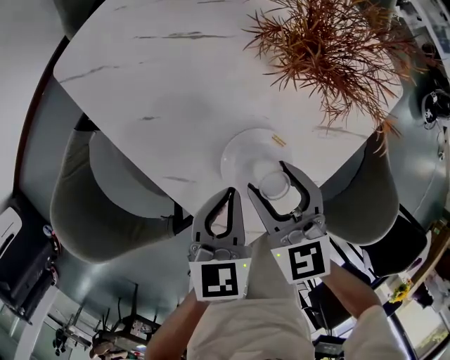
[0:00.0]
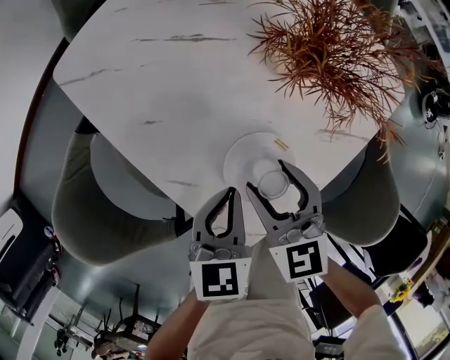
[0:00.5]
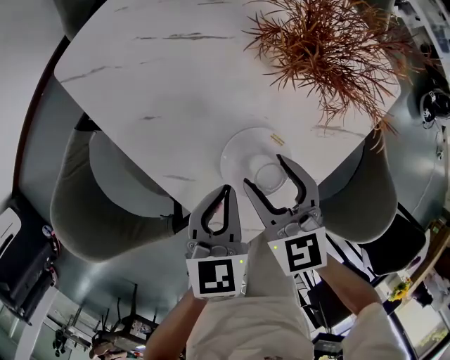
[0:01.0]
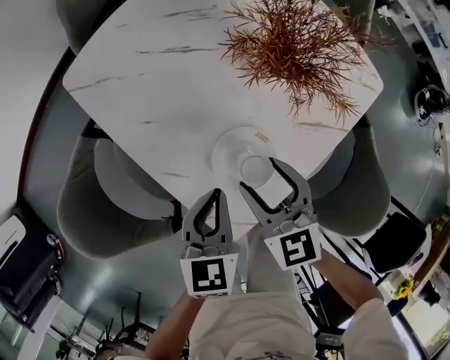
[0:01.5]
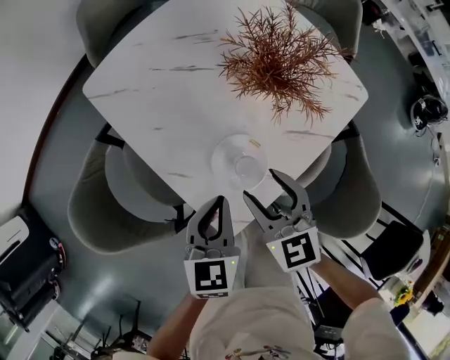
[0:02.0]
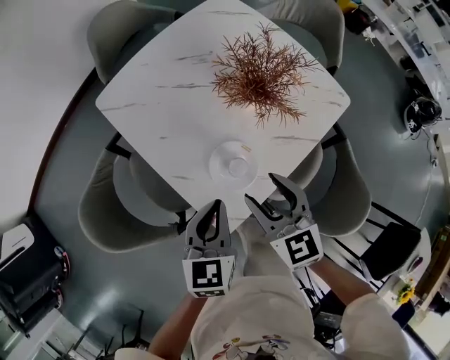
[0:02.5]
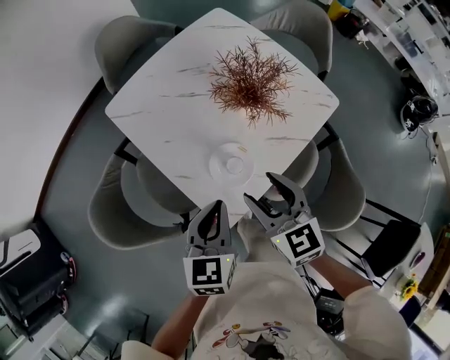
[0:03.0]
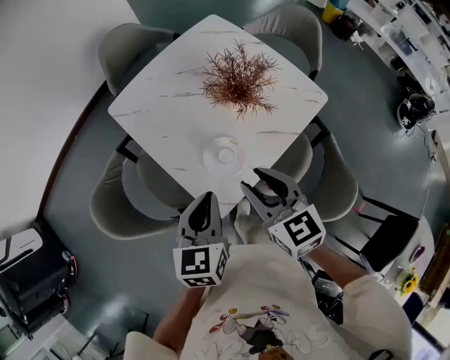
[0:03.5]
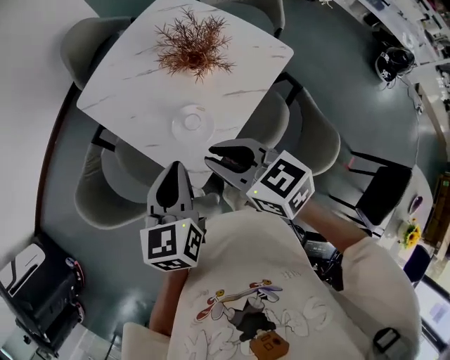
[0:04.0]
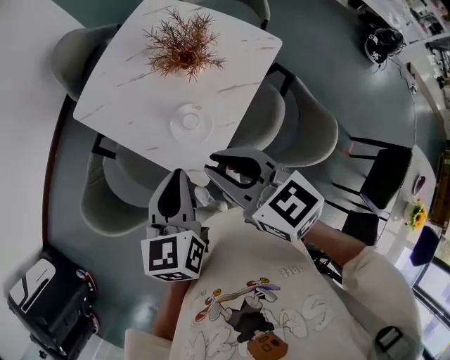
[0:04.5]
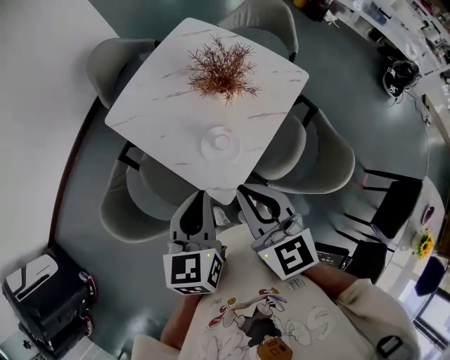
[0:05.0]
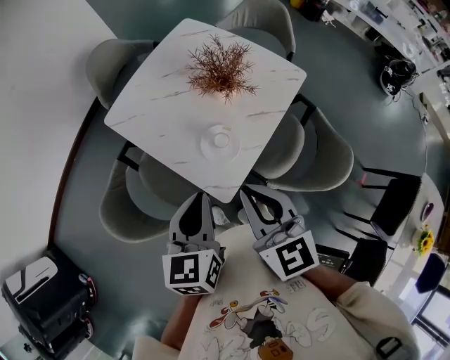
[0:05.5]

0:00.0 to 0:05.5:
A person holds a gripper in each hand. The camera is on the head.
0:00.0 to 0:02.0: Both grippers travel together upward, about 5 cm.
0:02.0 to 0:03.5: Both grippers travel together upward, approximately 15 cm. The right gripper closes.
0:03.5 to 0:05.5: The right gripper shifts roughly 10 cm upward and backward, and closes, while the left gripper heads upward, covering about 5 cm.

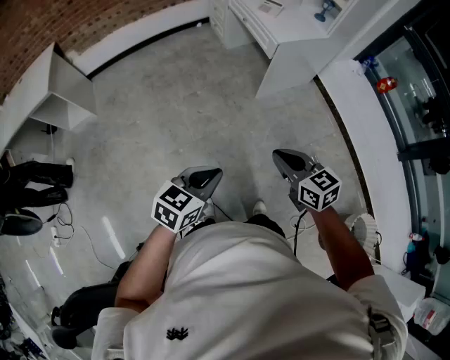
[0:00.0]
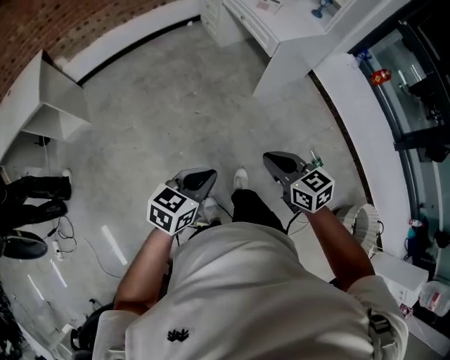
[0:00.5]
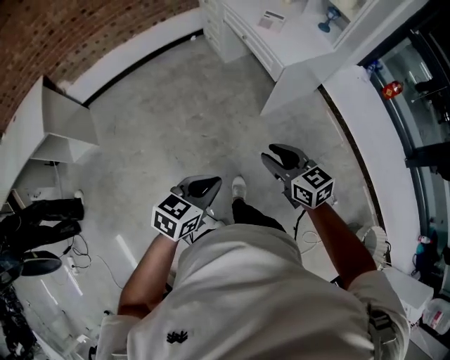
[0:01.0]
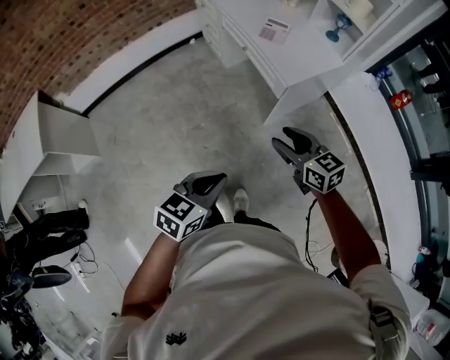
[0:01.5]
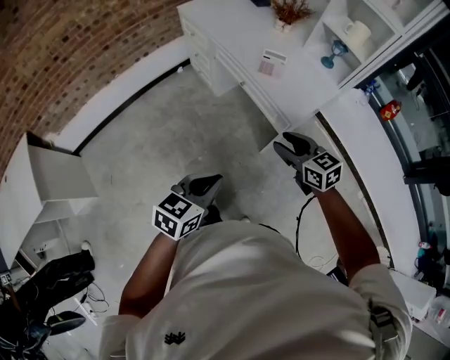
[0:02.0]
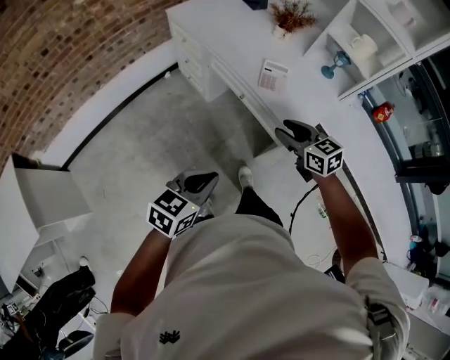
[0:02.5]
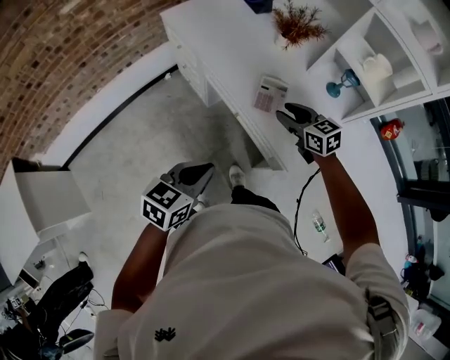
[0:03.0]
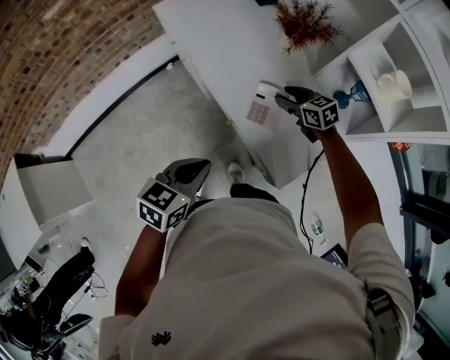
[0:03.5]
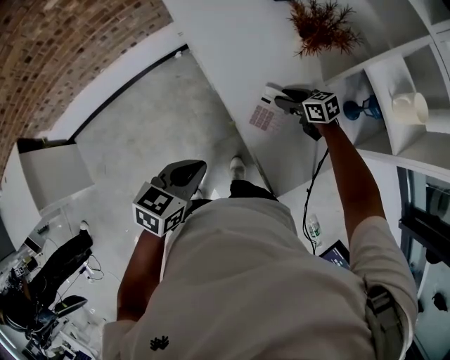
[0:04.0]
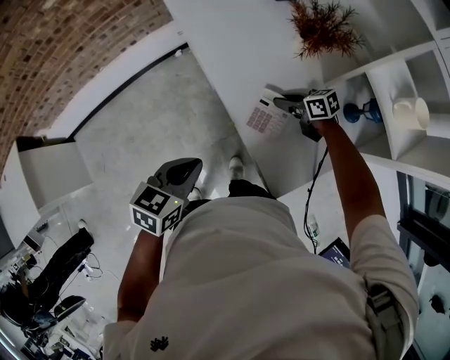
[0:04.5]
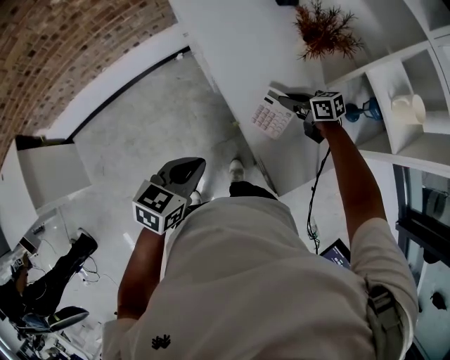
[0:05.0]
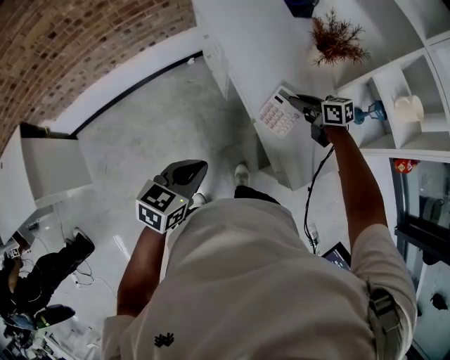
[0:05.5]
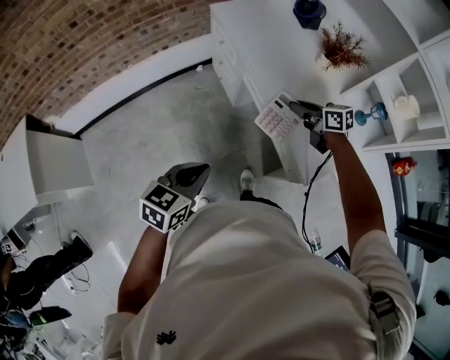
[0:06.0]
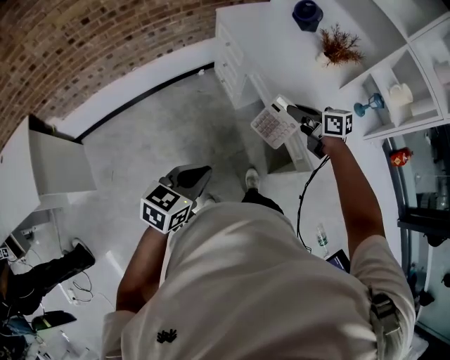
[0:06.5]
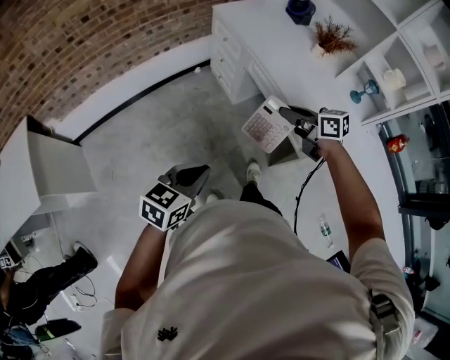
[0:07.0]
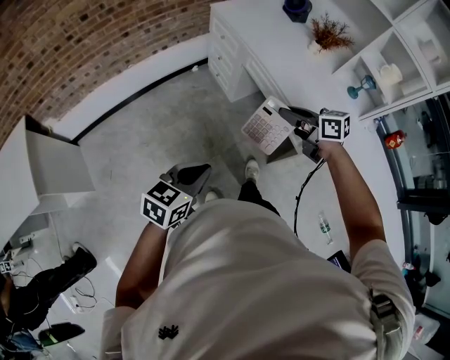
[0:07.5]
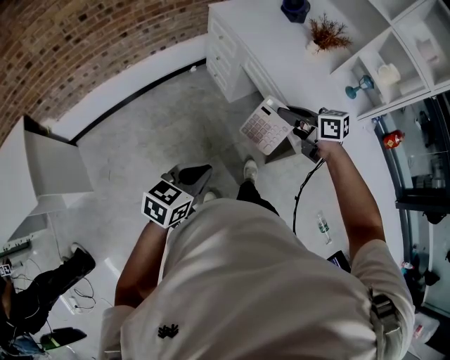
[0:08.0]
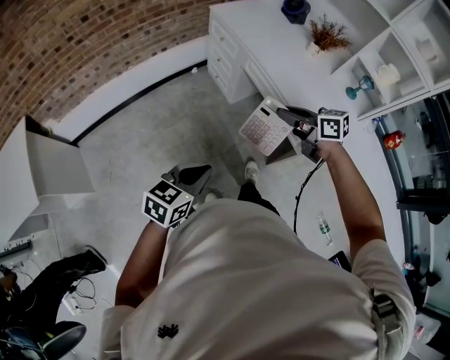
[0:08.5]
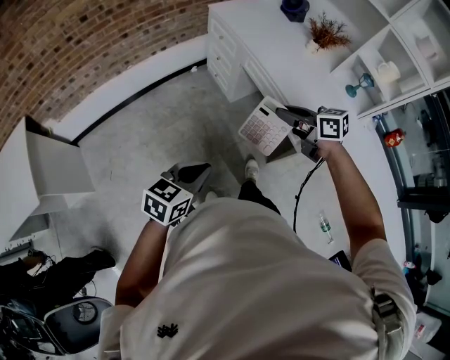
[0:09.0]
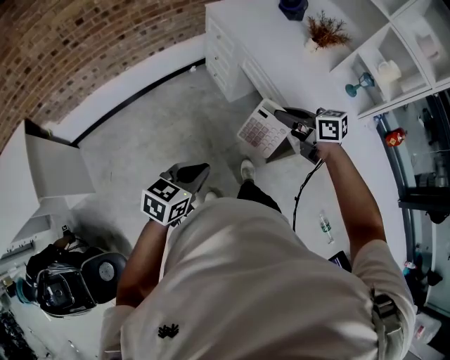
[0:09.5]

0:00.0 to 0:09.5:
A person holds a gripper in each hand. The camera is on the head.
0:00.0 to 0:02.0: The two grippers travel together, forward, roughly 50 cm. The right gripper opens up.
0:02.0 to 0:04.0: The right gripper moves forward and downward, about 50 cm, and changes its angle by roughly 30 degrees, while the left gripper shifts about 35 cm forward.
0:04.0 to 0:05.5: The left gripper heads to the left, covering some 10 cm. Meanwhile the right gripper moves upward and to the left, about 10 cm, and closes its fingers.
0:05.5 to 0:07.5: The right gripper goes some 35 cm backward, to the left and upward; the left gripper is displaced to the left and backward by about 25 cm.
0:07.5 to 0:09.5: The grippers make only small movements.

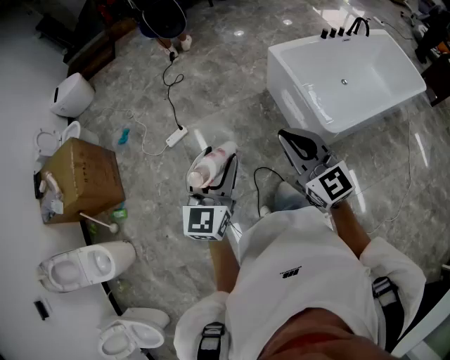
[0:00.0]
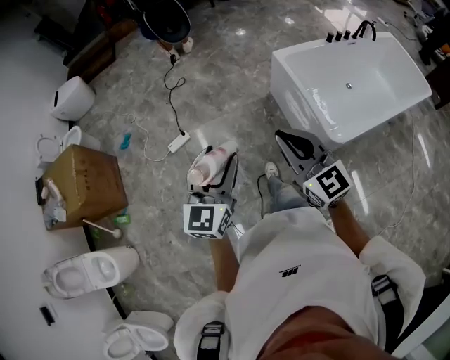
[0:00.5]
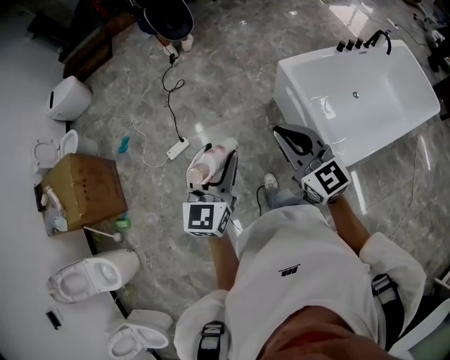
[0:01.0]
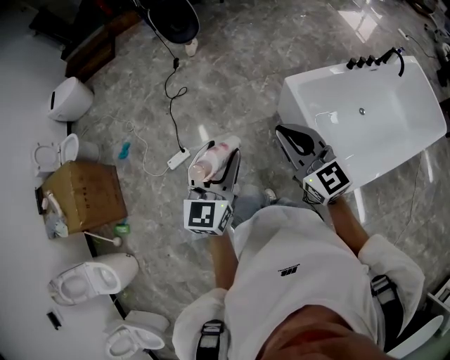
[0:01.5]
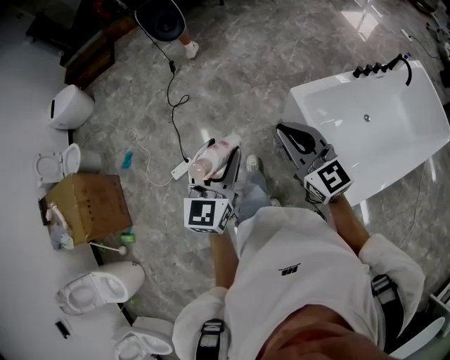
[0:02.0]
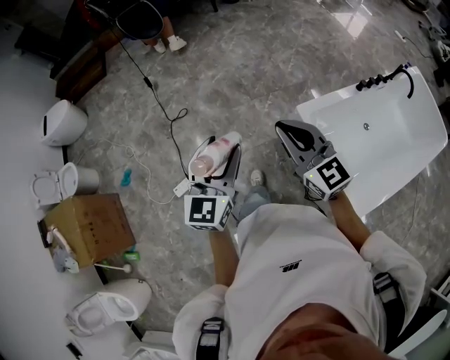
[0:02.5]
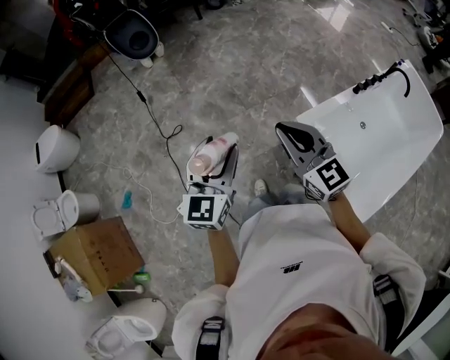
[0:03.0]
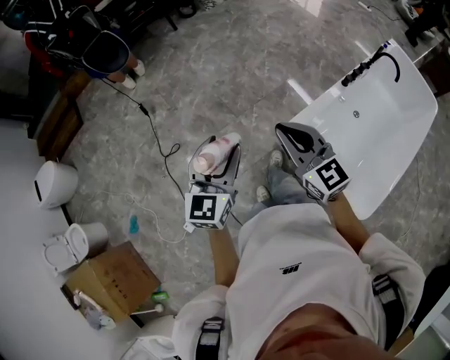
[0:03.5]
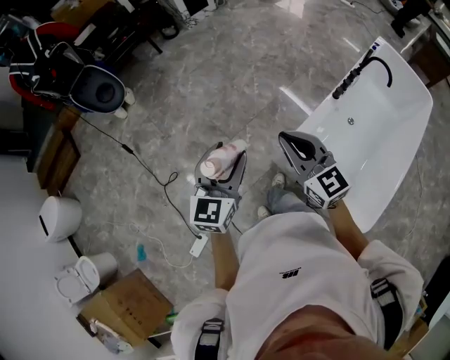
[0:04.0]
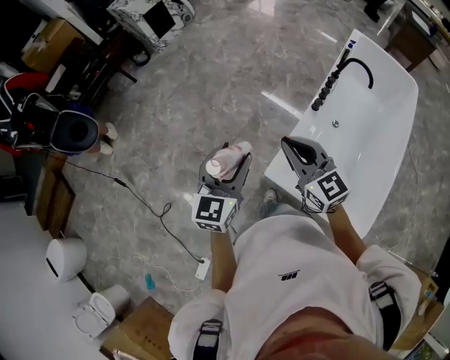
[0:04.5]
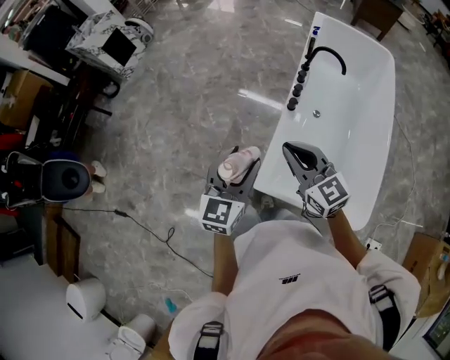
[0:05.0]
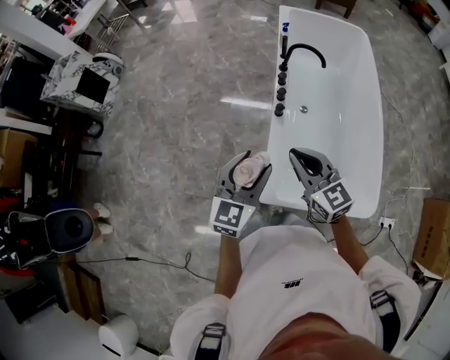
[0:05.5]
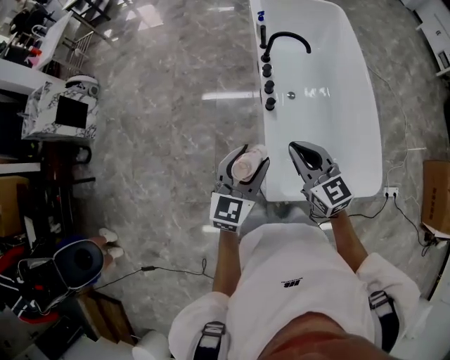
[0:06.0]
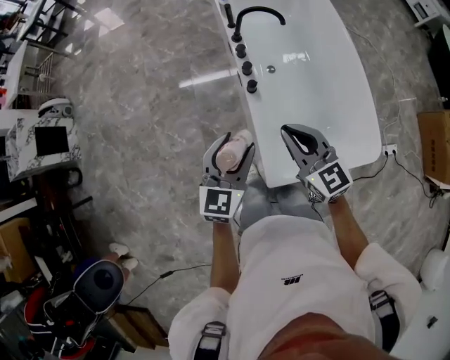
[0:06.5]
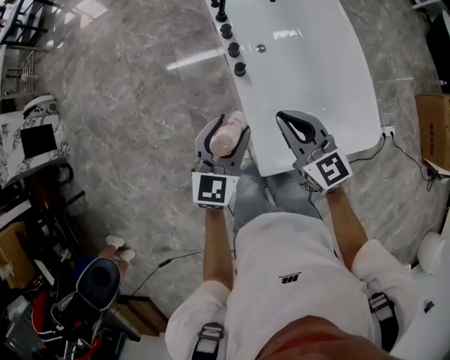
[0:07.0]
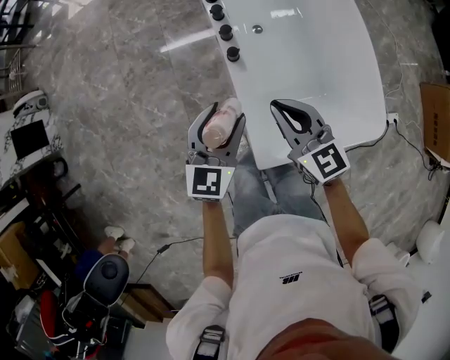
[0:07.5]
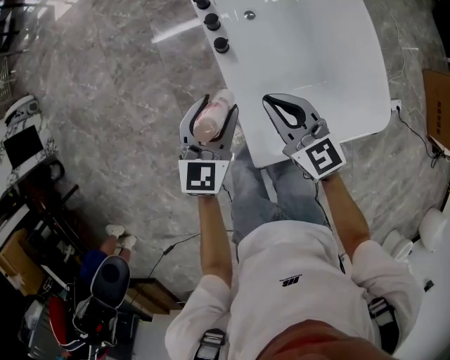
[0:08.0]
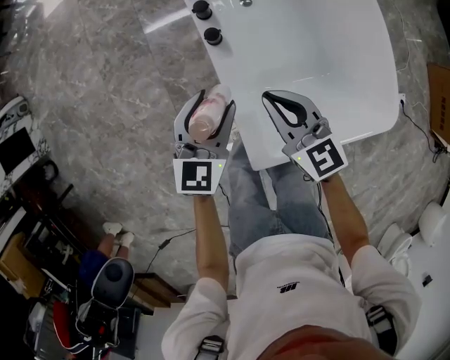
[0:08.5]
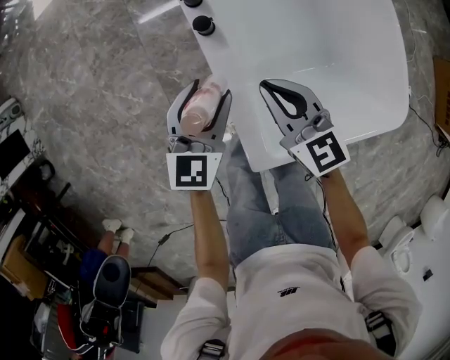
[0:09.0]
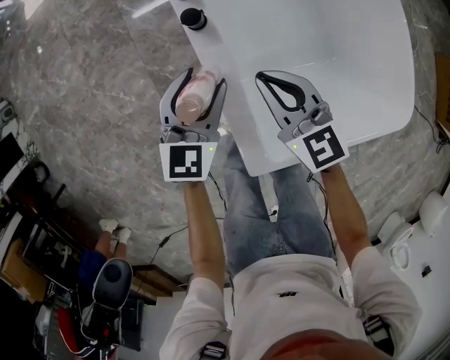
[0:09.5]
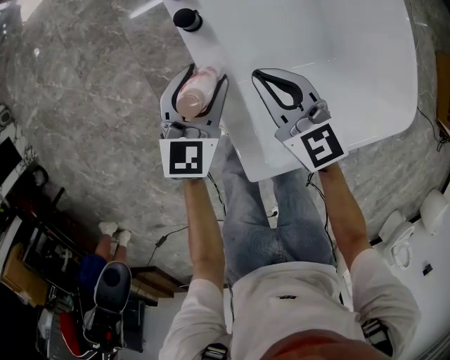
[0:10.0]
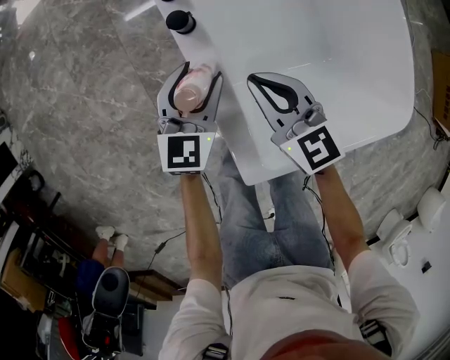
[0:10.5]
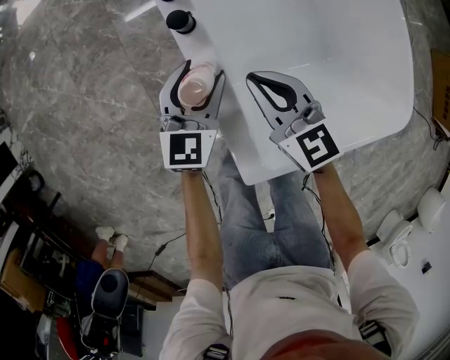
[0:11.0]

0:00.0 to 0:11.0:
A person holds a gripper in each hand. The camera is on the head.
0:00.0 to 0:02.0: Both grippers are carried forward, approximately 50 cm.
0:02.0 to 0:03.5: The grippers both shift forward by about 30 cm.
0:03.5 to 0:05.5: Both grippers are carried about 50 cm. The left gripper changes its angle by approximately 60 degrees. Meanwhile the right gripper changes its angle by roughly 50 degrees.
0:05.5 to 0:07.5: Both grippers move downward and forward, roughly 25 cm. The right gripper rotates roughly 20 degrees.
0:07.5 to 0:09.0: The grippers both shift downward by roughly 20 cm.
0:09.0 to 0:11.0: The grippers both shift downward by approximately 10 cm.

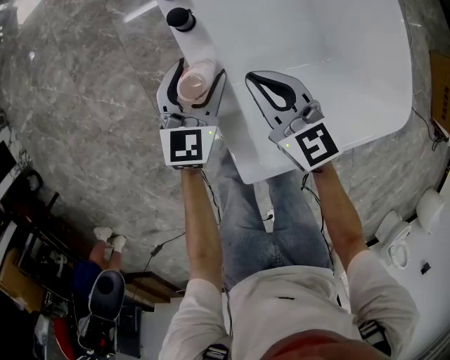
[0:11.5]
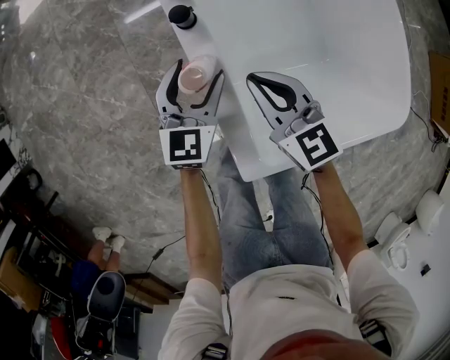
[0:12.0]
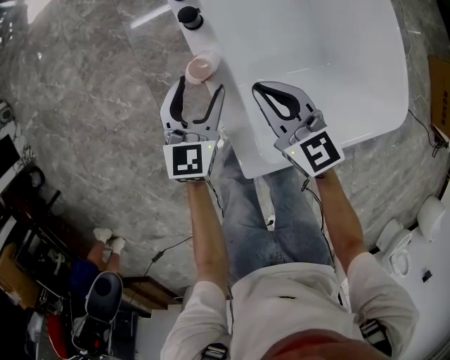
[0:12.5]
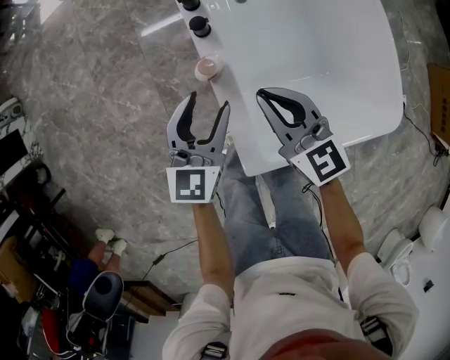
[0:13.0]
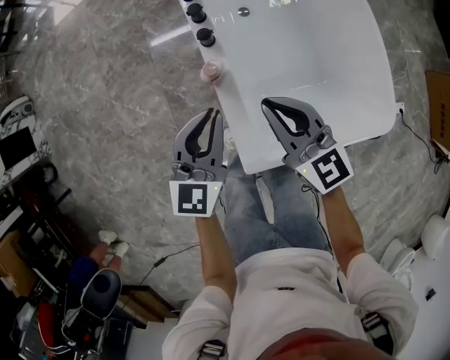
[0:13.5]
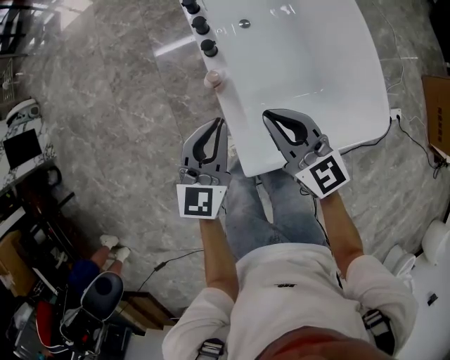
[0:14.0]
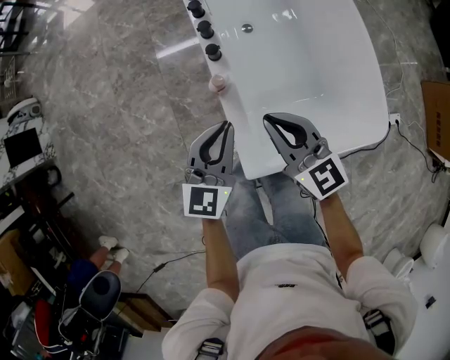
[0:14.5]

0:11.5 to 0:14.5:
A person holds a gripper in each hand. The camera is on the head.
0:11.5 to 0:13.0: The grippers both shift upward and backward by about 15 cm.
0:13.0 to 0:14.5: Both grippers move upward, approximately 10 cm. The left gripper closes.
